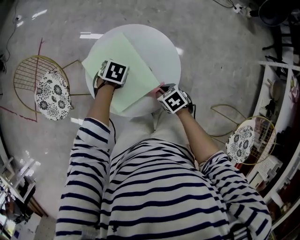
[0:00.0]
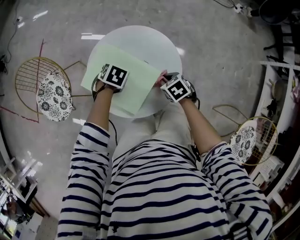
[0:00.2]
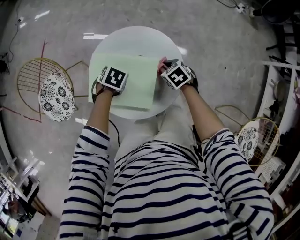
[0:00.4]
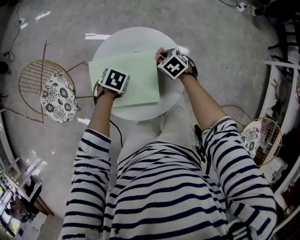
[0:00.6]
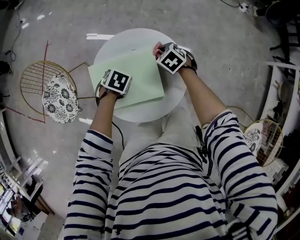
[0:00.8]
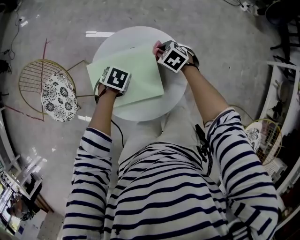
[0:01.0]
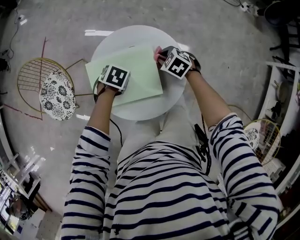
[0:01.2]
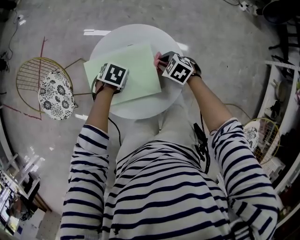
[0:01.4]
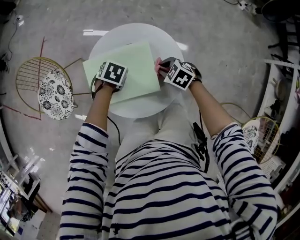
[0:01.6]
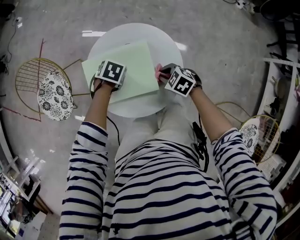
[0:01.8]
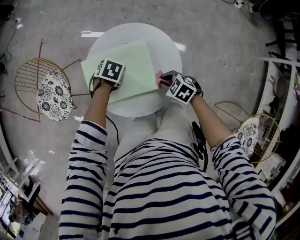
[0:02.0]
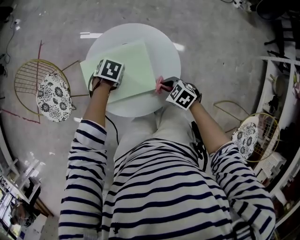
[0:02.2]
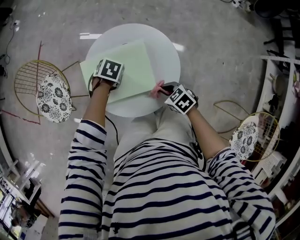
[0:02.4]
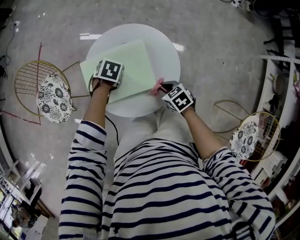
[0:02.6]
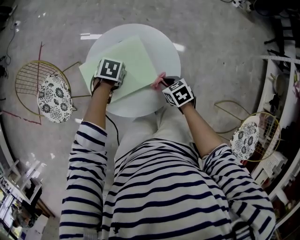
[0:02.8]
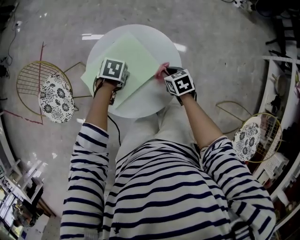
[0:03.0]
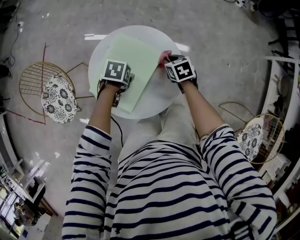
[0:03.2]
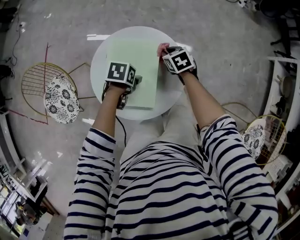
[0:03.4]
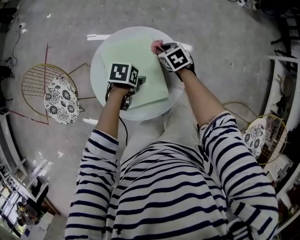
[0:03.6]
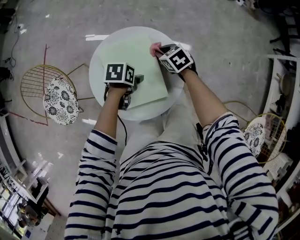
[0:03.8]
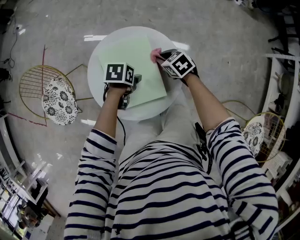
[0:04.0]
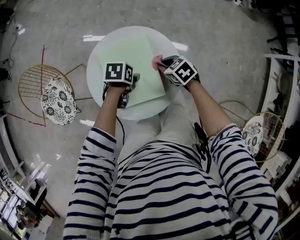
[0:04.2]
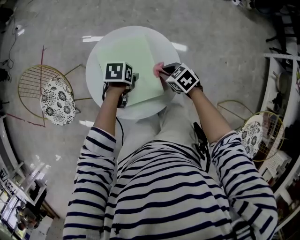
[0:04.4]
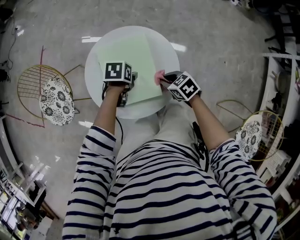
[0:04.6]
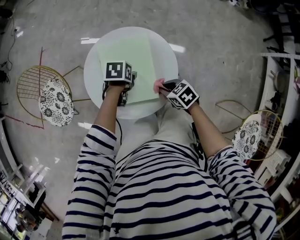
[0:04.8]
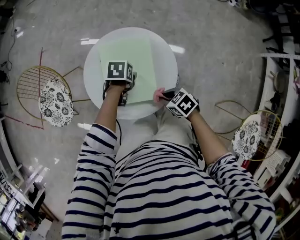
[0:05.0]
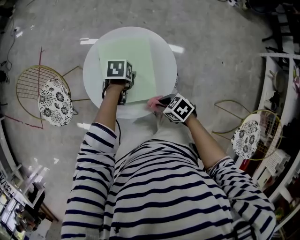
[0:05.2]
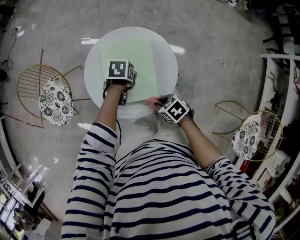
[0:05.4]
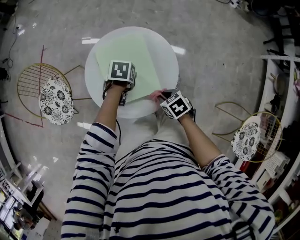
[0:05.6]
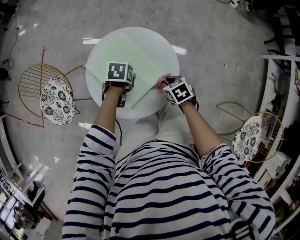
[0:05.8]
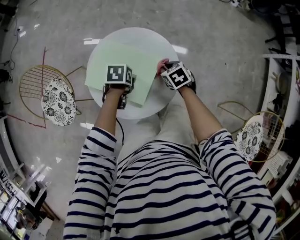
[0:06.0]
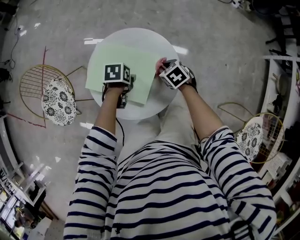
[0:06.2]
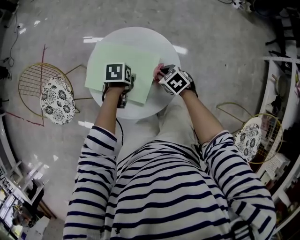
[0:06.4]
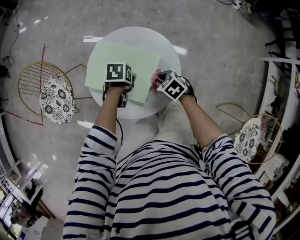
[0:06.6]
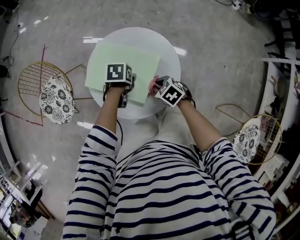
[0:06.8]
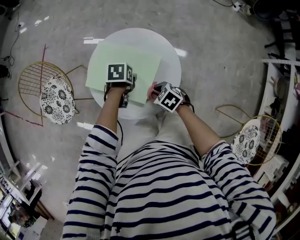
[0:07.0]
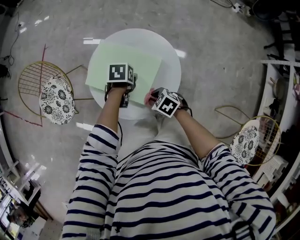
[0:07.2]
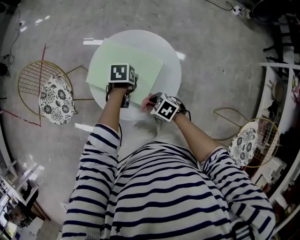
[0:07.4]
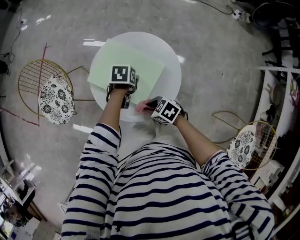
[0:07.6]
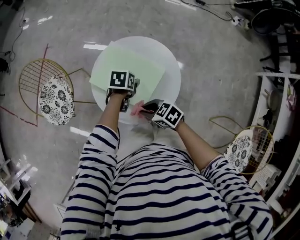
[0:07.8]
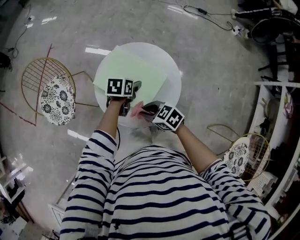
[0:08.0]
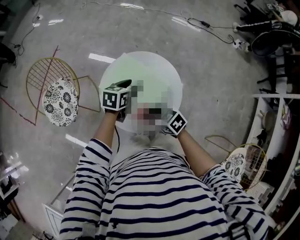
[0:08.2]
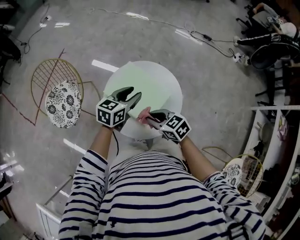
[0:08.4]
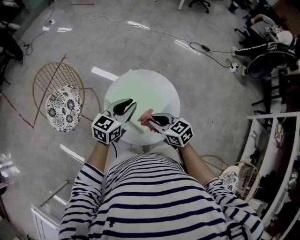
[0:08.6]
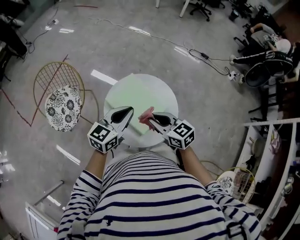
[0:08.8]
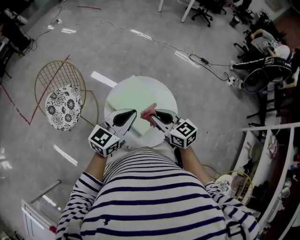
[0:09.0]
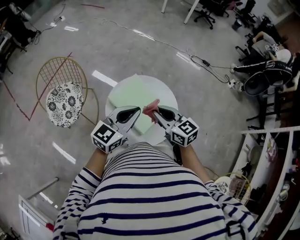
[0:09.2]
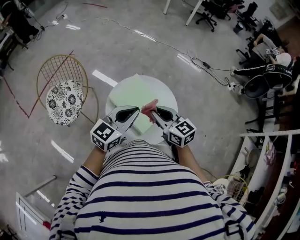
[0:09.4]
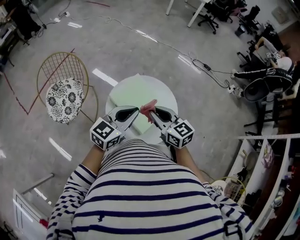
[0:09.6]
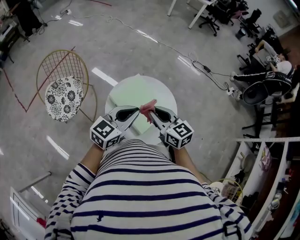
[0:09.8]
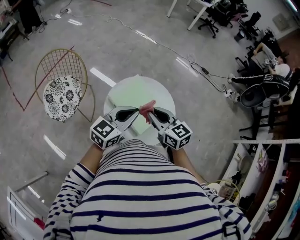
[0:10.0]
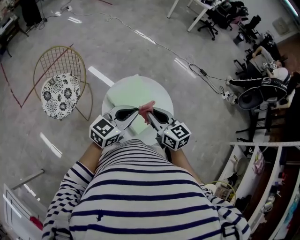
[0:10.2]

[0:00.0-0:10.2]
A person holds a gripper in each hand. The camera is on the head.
0:00.0 to 0:01.4: The right gripper changes place by approximately 15 cm, and turns by about 30 degrees.
0:01.4 to 0:03.0: The right gripper rotates roughly 40 degrees.
0:03.0 to 0:04.4: The right gripper swivels roughly 20 degrees.
0:05.8 to 0:07.2: The right gripper changes place by approximately 10 cm, and rotates roughly 30 degrees.
0:07.2 to 0:08.8: Both grippers travel together upward, about 25 cm. The left gripper tilts its fingers roughly 60 degrees upward, and closes its fingers; the right gripper tilts its fingers roughly 30 degrees upward.
0:08.8 to 0:10.2: There are only small adjustments of the grippers.

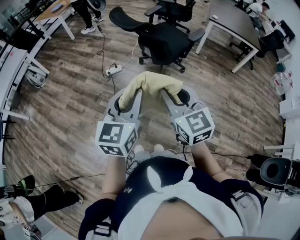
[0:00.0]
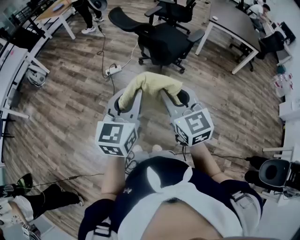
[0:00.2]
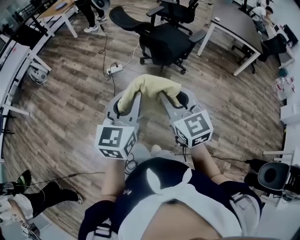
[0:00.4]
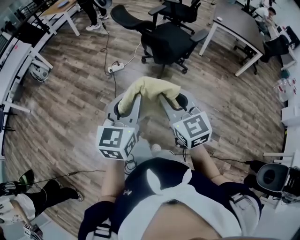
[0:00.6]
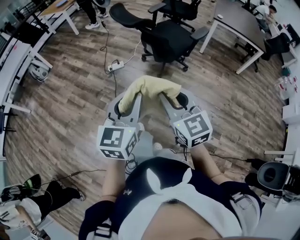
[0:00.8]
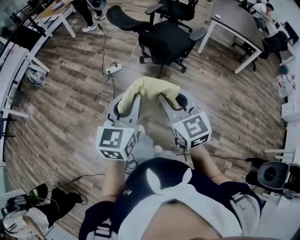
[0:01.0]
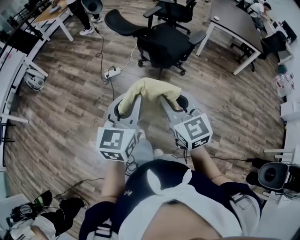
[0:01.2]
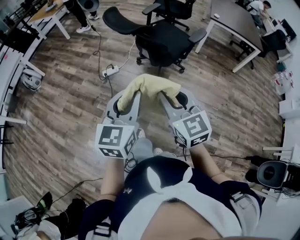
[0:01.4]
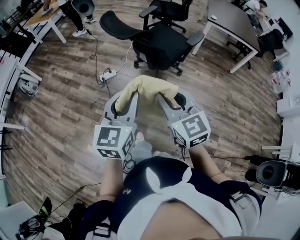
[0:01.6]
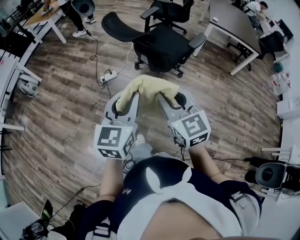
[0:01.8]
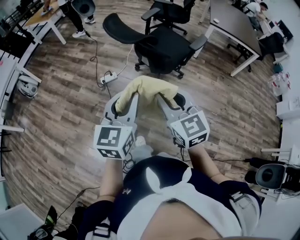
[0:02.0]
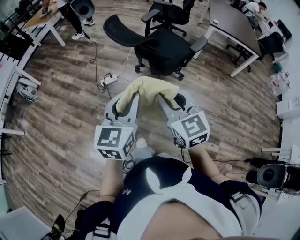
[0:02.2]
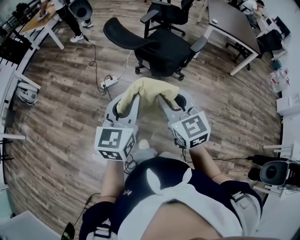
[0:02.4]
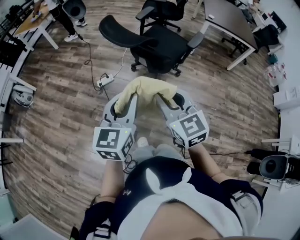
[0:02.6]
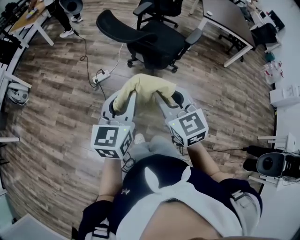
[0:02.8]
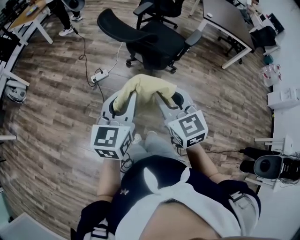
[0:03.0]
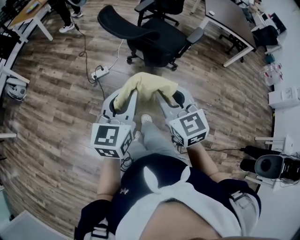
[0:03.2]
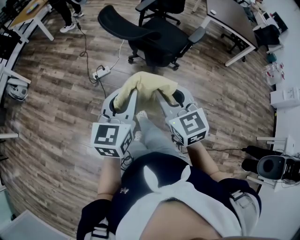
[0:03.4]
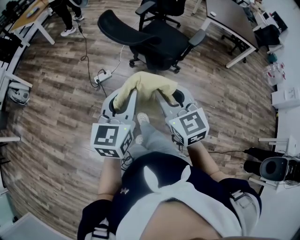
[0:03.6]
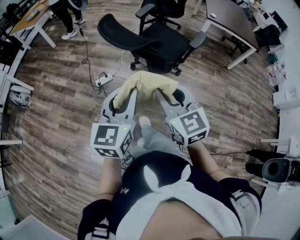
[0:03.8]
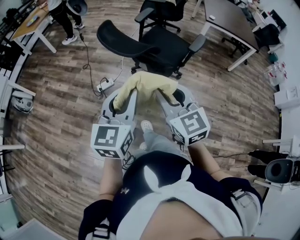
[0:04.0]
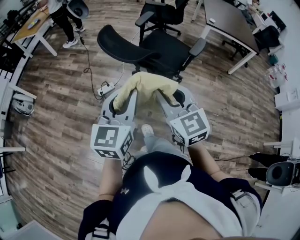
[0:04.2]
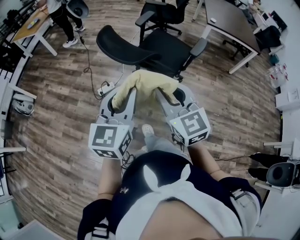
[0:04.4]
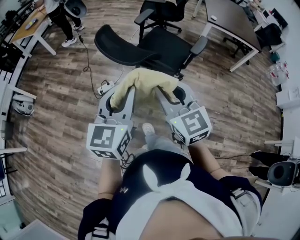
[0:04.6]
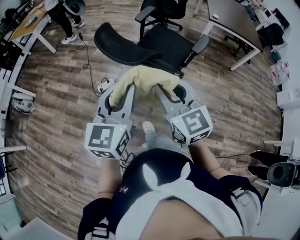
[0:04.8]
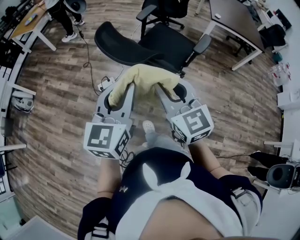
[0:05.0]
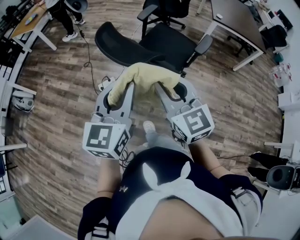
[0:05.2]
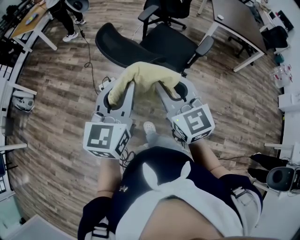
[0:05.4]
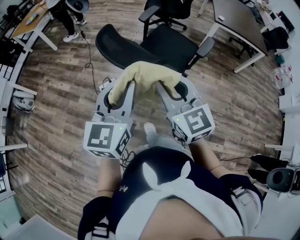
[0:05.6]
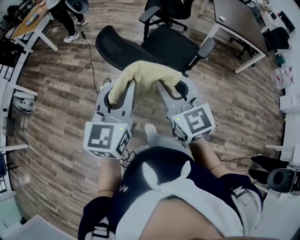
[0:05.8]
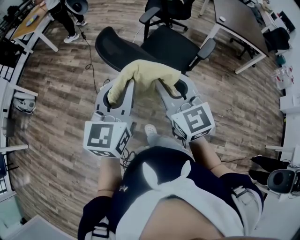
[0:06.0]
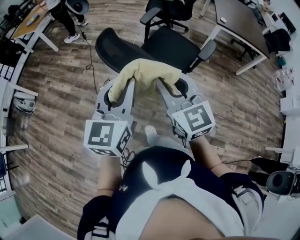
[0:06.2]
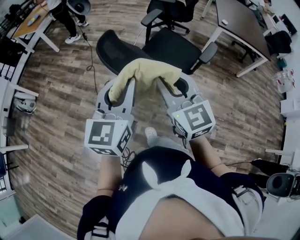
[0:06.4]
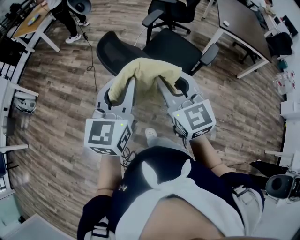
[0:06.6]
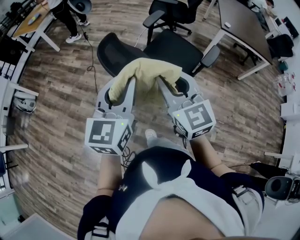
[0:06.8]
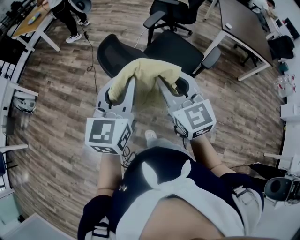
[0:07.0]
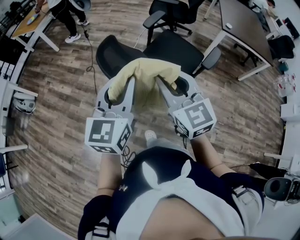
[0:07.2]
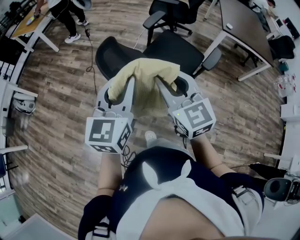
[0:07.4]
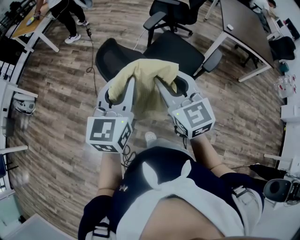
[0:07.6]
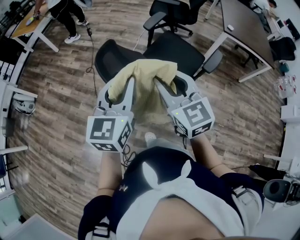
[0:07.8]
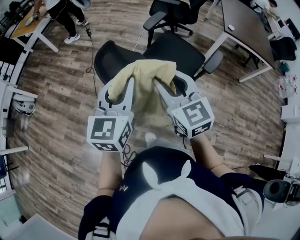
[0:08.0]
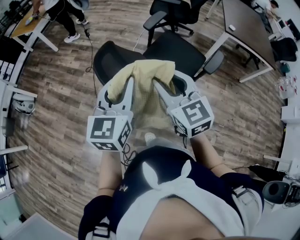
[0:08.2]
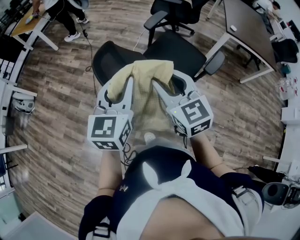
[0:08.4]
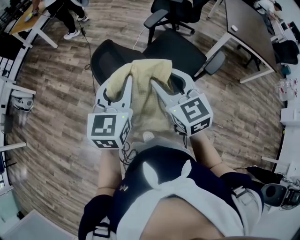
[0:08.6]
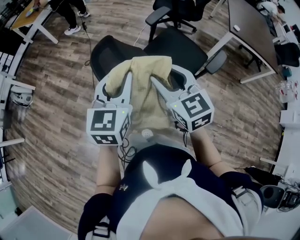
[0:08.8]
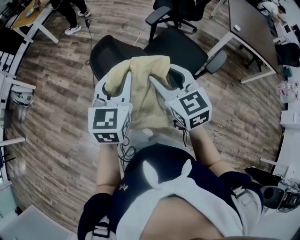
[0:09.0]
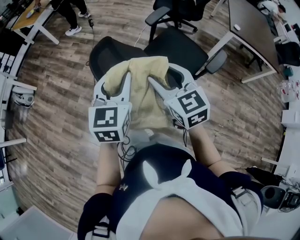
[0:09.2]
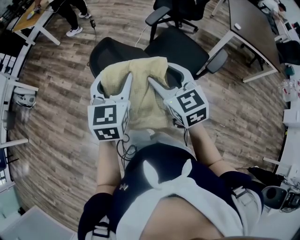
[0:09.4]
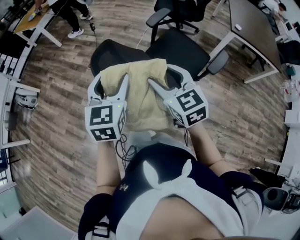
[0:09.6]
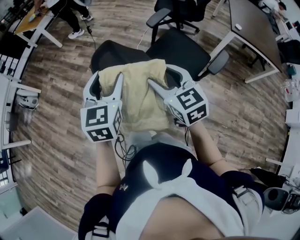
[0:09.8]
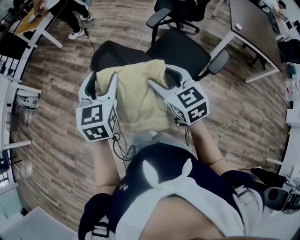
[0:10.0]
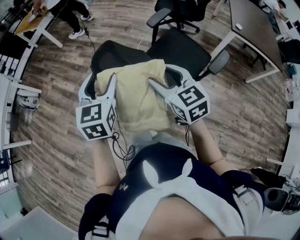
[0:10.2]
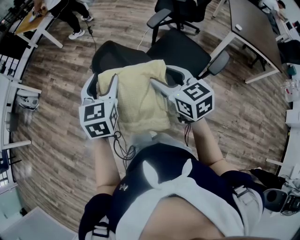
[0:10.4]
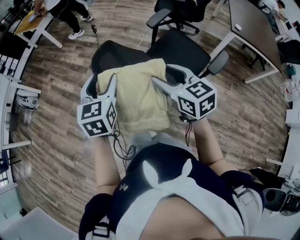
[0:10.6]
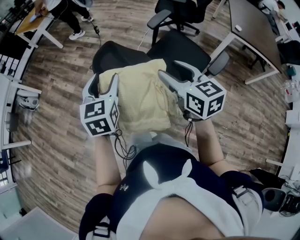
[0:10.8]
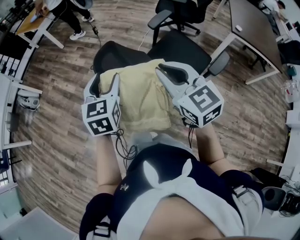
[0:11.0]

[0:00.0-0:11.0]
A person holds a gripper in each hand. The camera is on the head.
0:00.0 to 0:01.6: The grippers both shift forward by some 15 cm.
0:01.6 to 0:03.2: The grippers both shift forward and to the left by approximately 15 cm.
0:03.2 to 0:04.8: The two grippers go about 15 cm forward.
0:04.8 to 0:06.2: Both grippers travel together forward, roughly 10 cm.
0:06.2 to 0:07.8: The grippers both shift forward by about 15 cm.
0:07.8 to 0:09.4: The two grippers go roughly 10 cm forward and downward. The left gripper opens its fingers, while the right gripper opens.
0:09.4 to 0:11.0: The right gripper shifts roughly 5 cm upward, and closes its fingers. The left gripper shifts by some 5 cm.

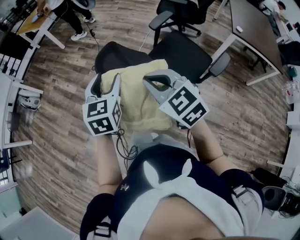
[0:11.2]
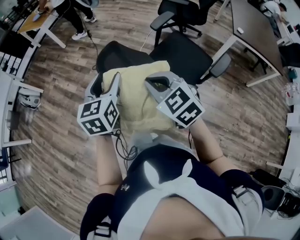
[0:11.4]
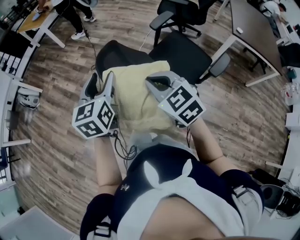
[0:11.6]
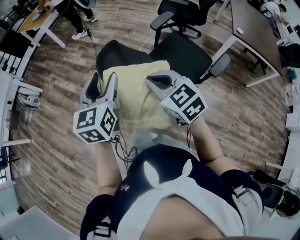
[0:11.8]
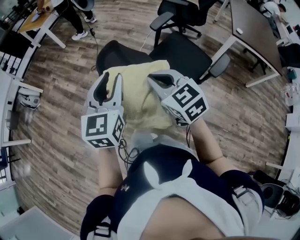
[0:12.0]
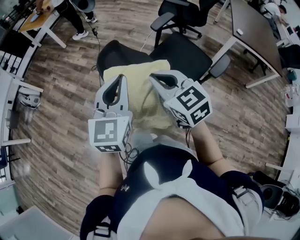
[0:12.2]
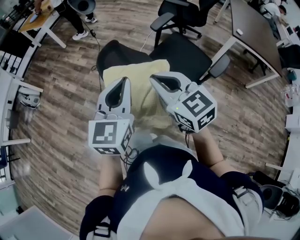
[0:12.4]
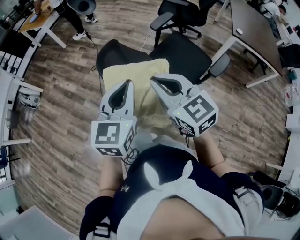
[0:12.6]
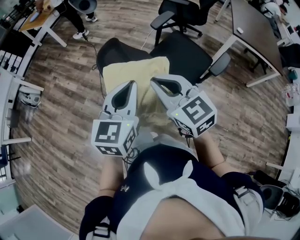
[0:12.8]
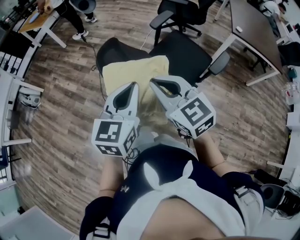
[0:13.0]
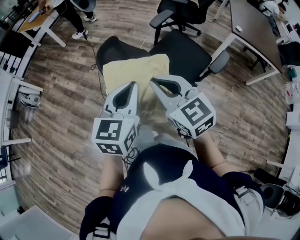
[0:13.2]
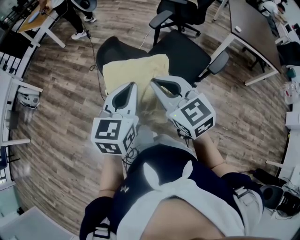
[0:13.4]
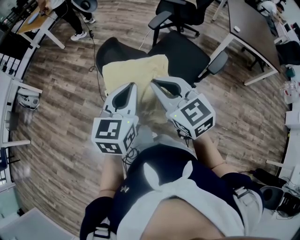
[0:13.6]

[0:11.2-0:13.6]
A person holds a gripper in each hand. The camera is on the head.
0:11.2 to 0:12.4: The left gripper moves backward and upward, some 10 cm, and closes up.
0:12.4 to 0:13.6: The left gripper ends up roughly 5 cm from where it was.
